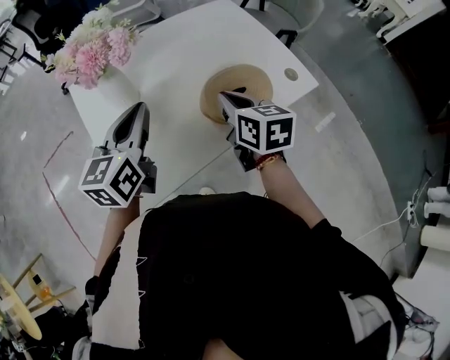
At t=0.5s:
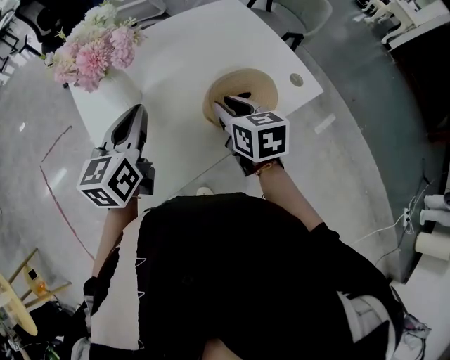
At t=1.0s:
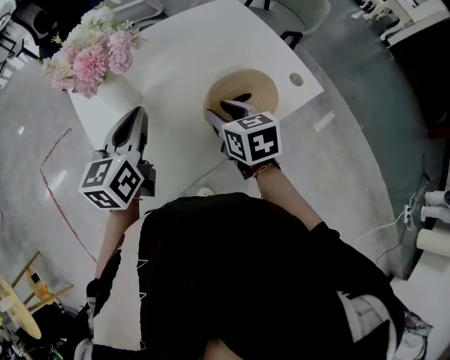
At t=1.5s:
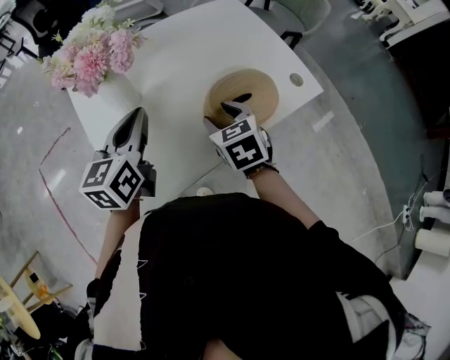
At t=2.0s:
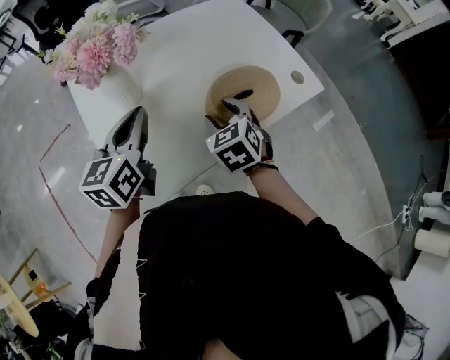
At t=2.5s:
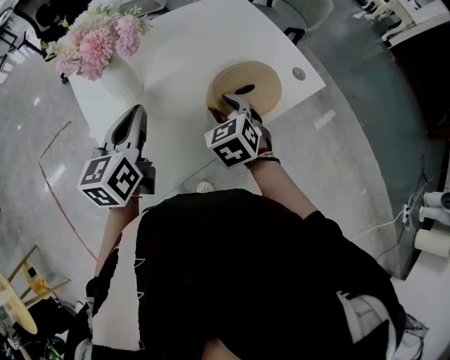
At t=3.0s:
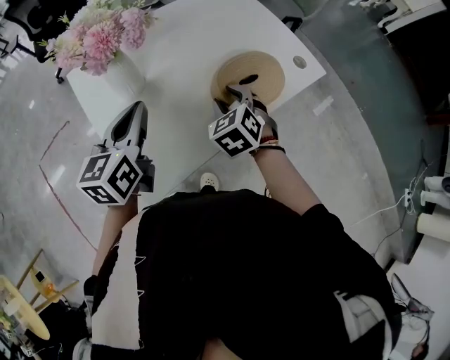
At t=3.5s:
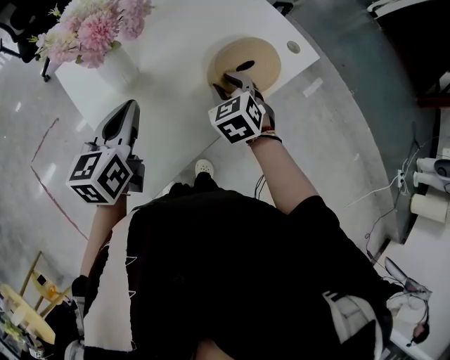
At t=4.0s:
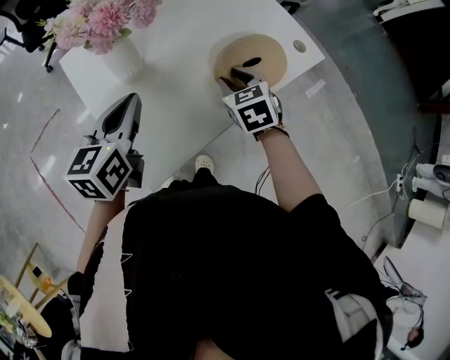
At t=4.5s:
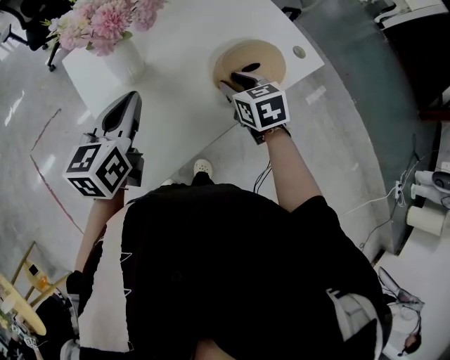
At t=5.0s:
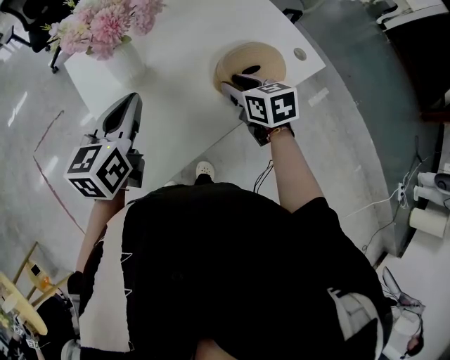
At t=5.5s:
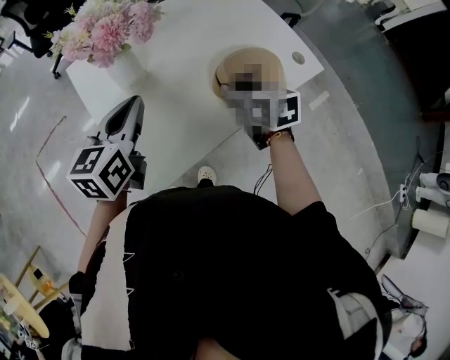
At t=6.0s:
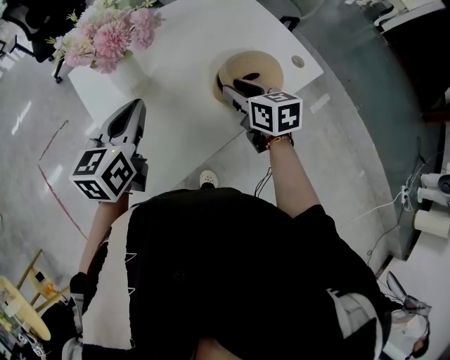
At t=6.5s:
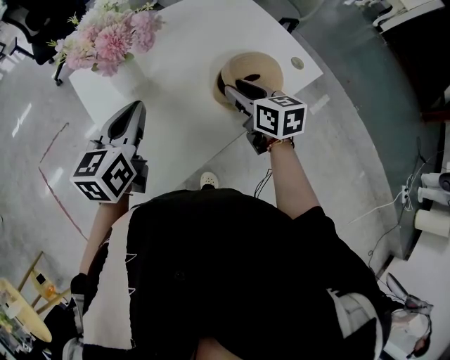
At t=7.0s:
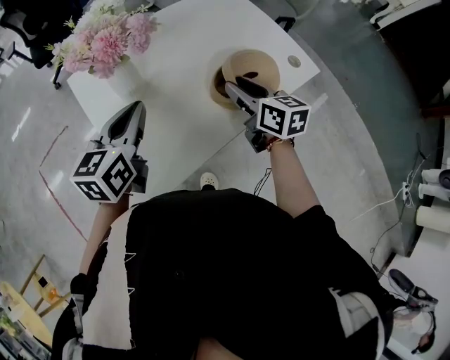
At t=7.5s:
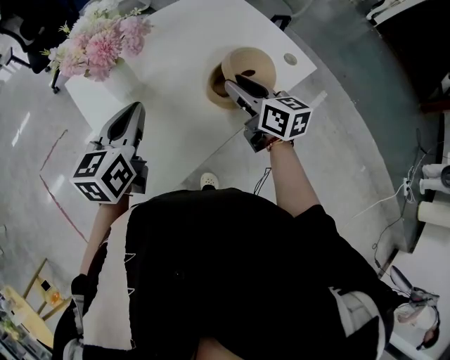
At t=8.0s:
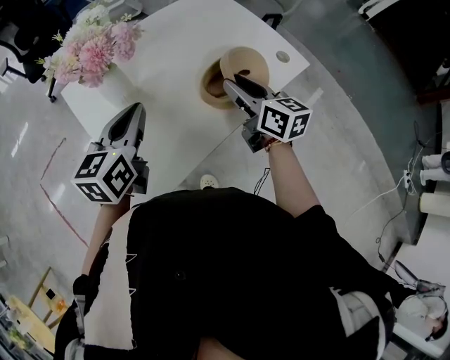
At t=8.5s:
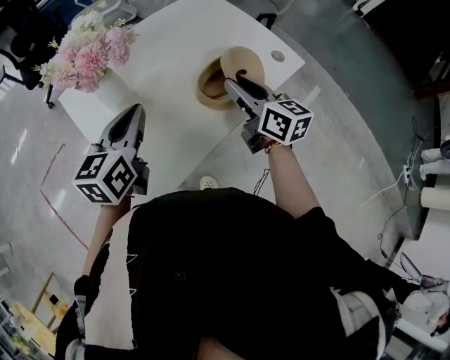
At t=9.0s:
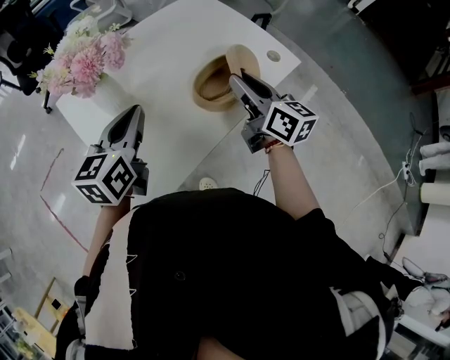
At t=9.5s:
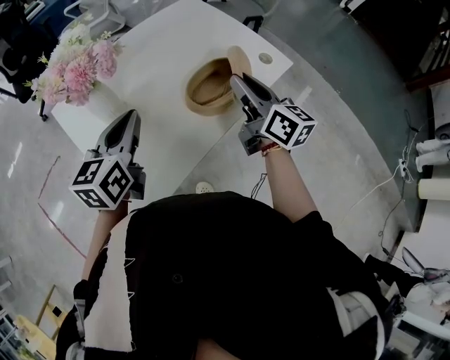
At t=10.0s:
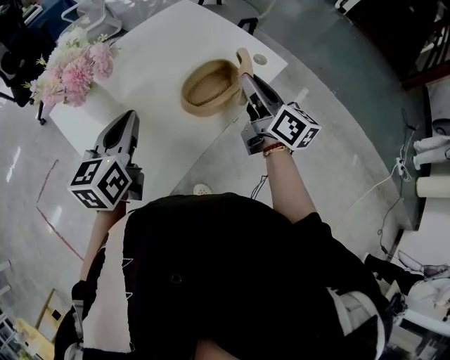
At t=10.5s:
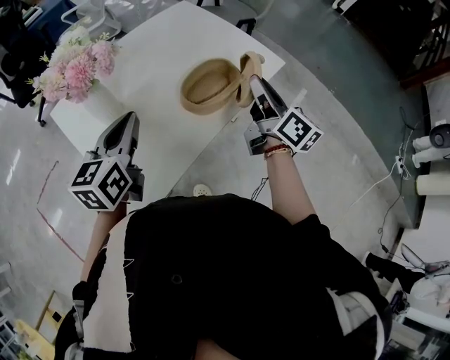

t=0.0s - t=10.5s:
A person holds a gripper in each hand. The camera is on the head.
t=0.0s - t=2.0s: The right gripper goes some 5 cm downward, rotates roughly 40 degrees, and opens up.
t=2.0s - t=4.0s: The left gripper ends up approximately 5 cm from where it was.
t=4.0s - t=6.5s: The right gripper changes place by about 5 cm, and changes its angle by about 30 degrees.
t=6.5s - t=8.5s: The right gripper moves upward, roughly 5 cm.
t=8.5s - t=10.5s: The right gripper goes about 10 cm to the right, and changes its angle by roughly 30 degrees.

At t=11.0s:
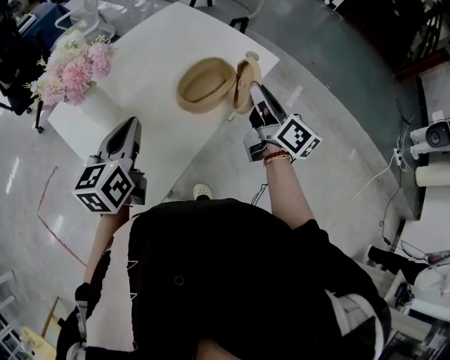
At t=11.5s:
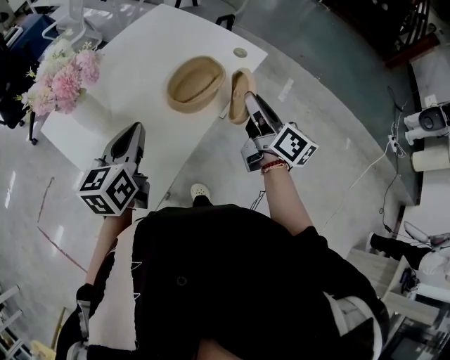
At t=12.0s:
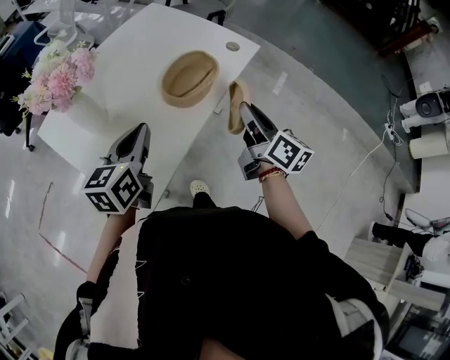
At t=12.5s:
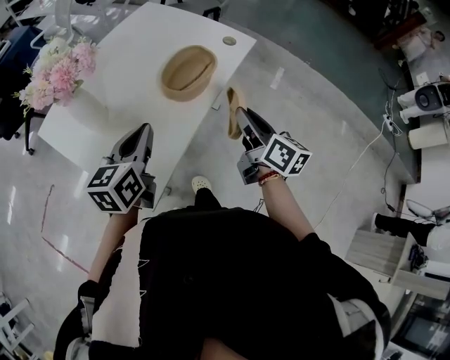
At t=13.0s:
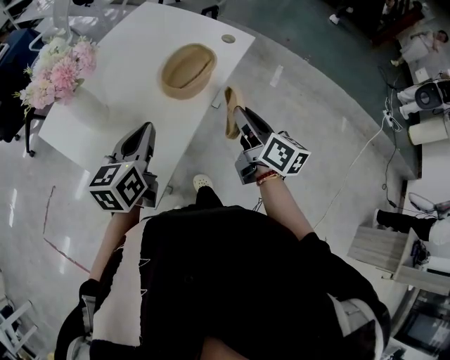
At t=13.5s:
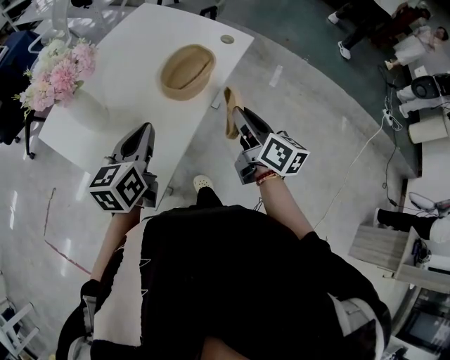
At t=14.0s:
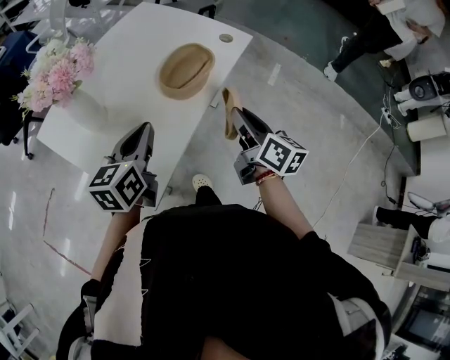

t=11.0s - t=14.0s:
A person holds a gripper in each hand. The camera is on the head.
t=11.0s - t=12.5s: The right gripper is displaced backward and downward by some 10 cm, while the left gripper moves some 5 cm.
t=12.5s - t=14.0s: The grippers stay close to where they were, moving slightly.

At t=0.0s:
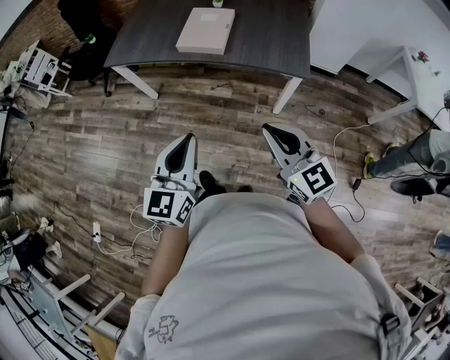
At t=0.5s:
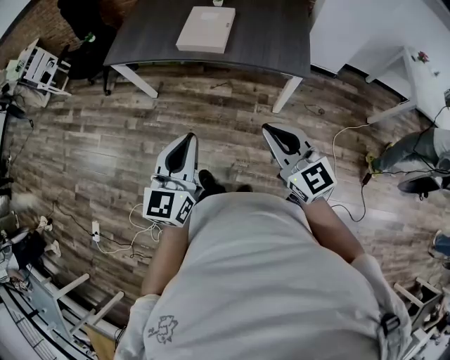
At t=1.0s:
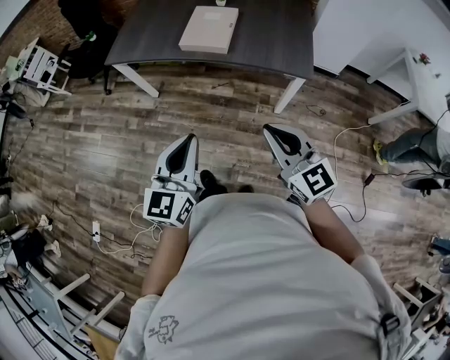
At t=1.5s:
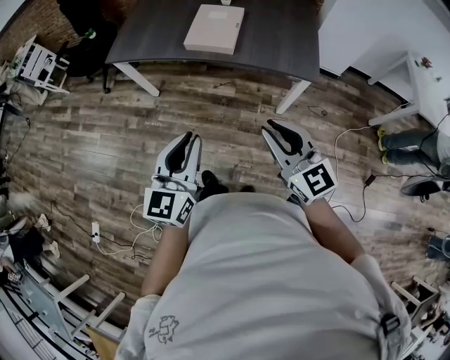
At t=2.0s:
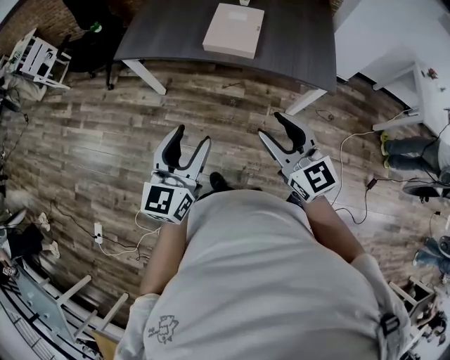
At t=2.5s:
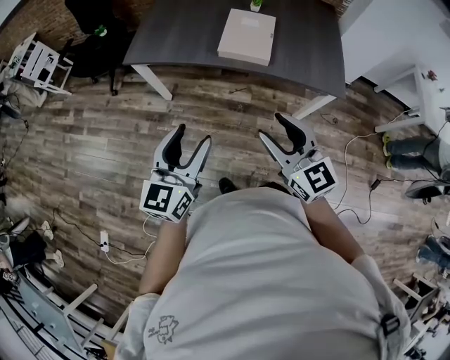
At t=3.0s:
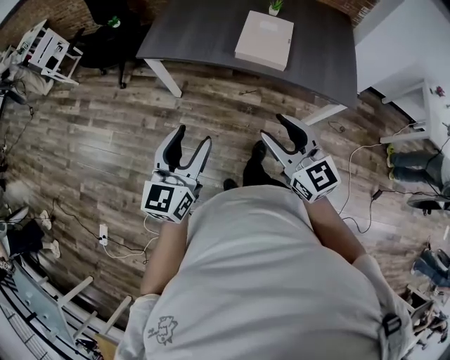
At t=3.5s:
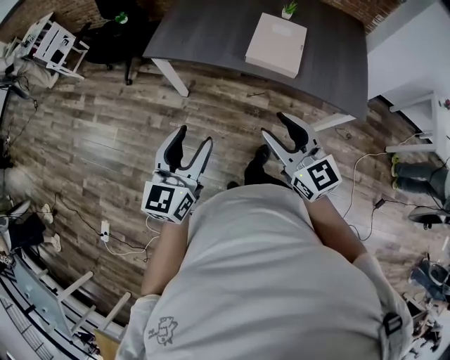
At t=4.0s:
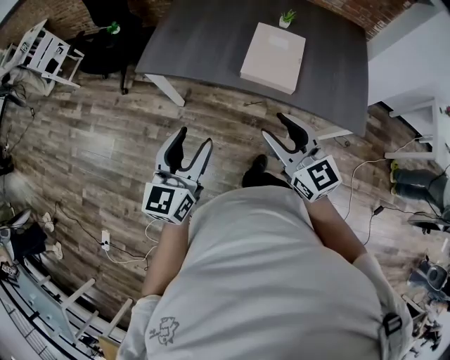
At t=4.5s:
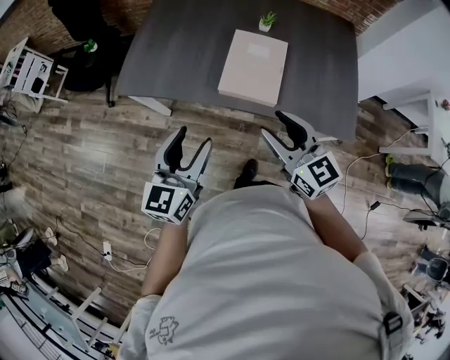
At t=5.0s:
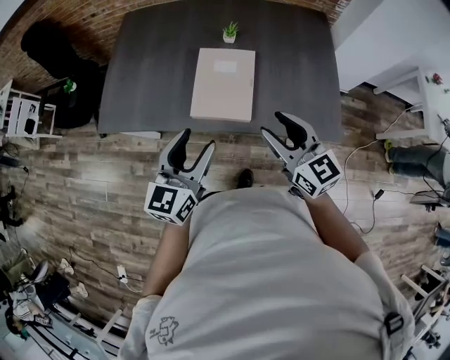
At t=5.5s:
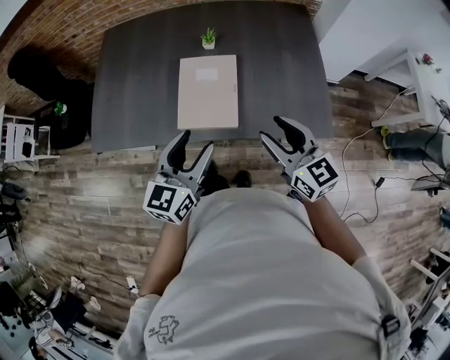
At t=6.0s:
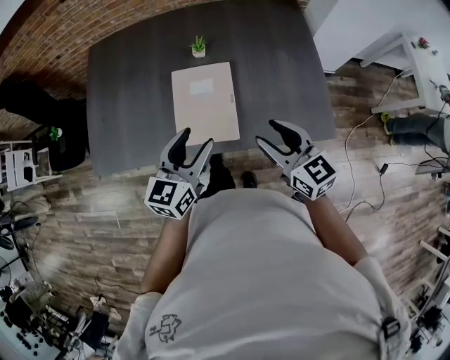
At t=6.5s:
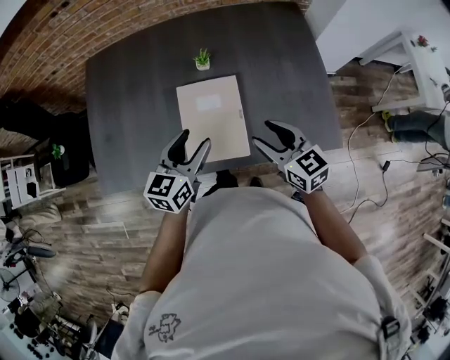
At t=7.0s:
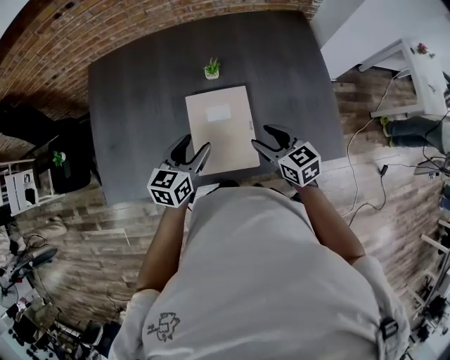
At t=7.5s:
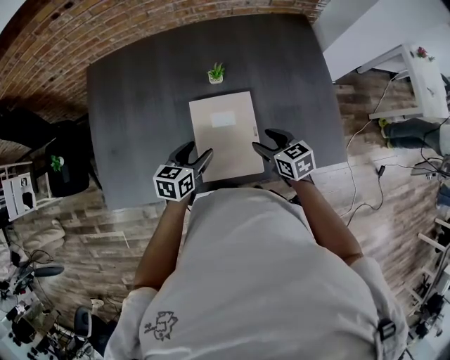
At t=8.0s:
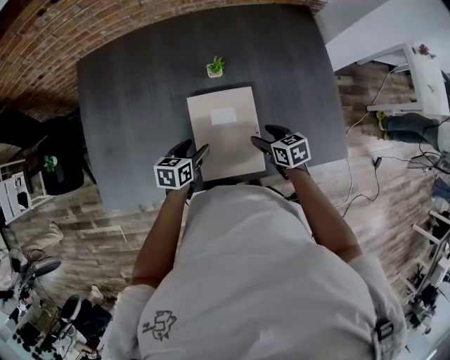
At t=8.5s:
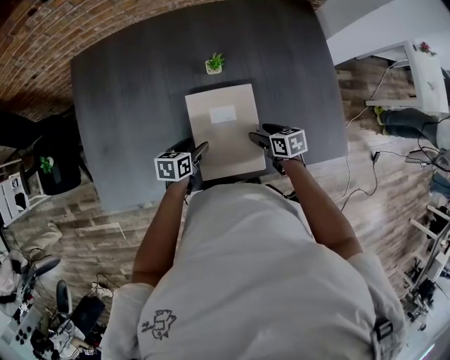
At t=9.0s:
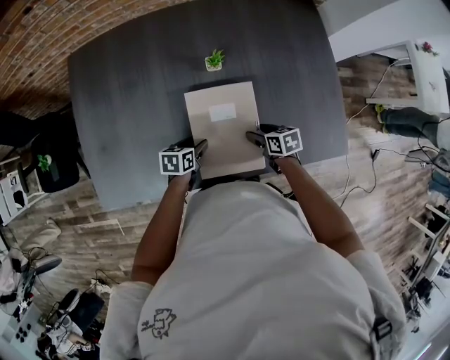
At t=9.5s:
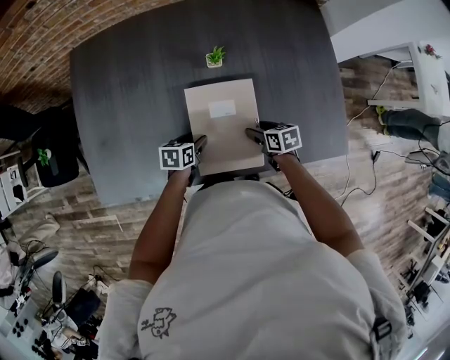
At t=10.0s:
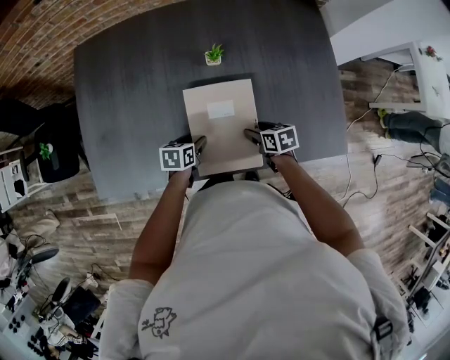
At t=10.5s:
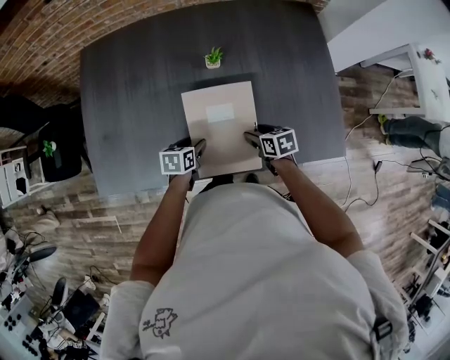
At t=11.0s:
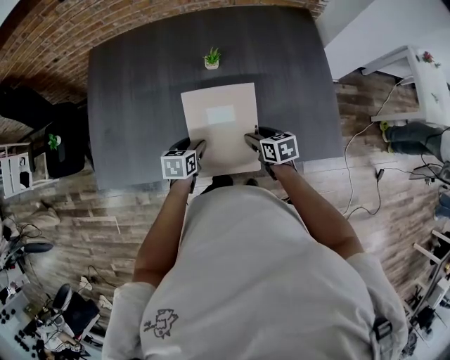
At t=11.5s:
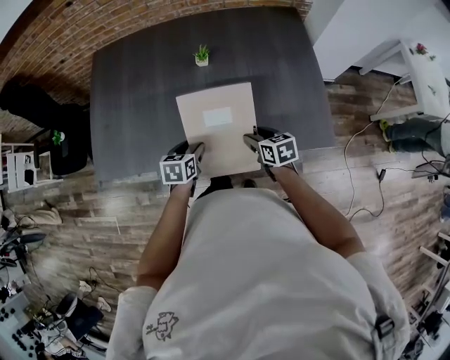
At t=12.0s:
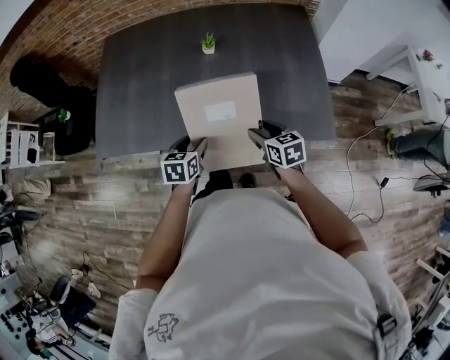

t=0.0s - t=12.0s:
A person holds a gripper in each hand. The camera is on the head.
t=0.0s - t=2.0s: The grippers both shift to the left and forward by some 15 cm. The right gripper opens its fingers, while the left gripper opens up.
t=2.0s - t=4.0s: Both grippers move forward and to the left, some 20 cm.
t=4.0s - t=6.0s: The right gripper goes about 30 cm to the right and forward, and rotates about 20 degrees. Meanwhile the left gripper heads forward and to the right, covering approximately 35 cm, and changes its angle by about 30 degrees.
t=6.0s - t=8.0s: The left gripper moves downward, forward and to the left, approximately 30 cm, and rotates about 40 degrees. Meanwhile the right gripper goes approximately 25 cm downward and forward, and points its fingers about 30 degrees further downward.
t=8.0s - t=10.0s: Both grippers travel together downward, about 5 cm.
t=10.0s - t=12.0s: The left gripper is displaced backward and upward by approximately 20 cm, and swivels roughly 20 degrees; the right gripper travels upward, backward and to the right by some 20 cm, and rotates some 20 degrees.

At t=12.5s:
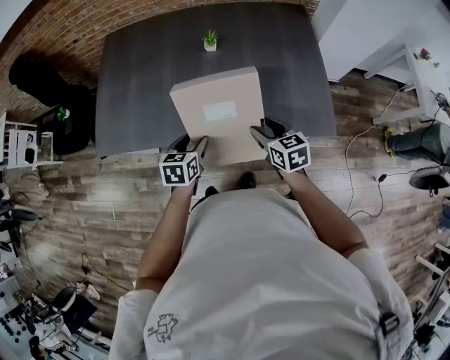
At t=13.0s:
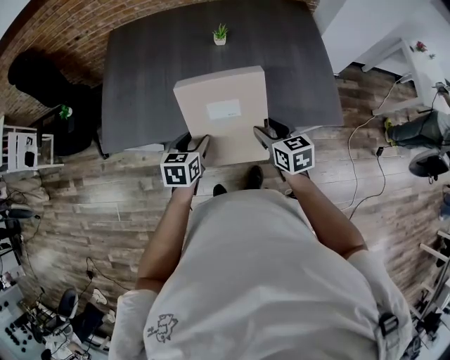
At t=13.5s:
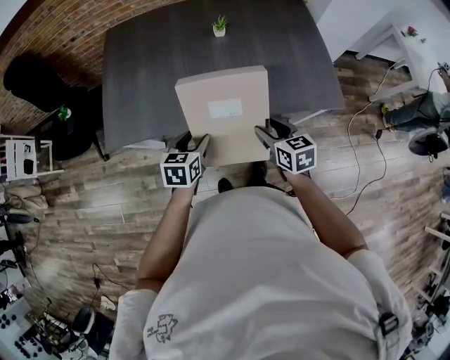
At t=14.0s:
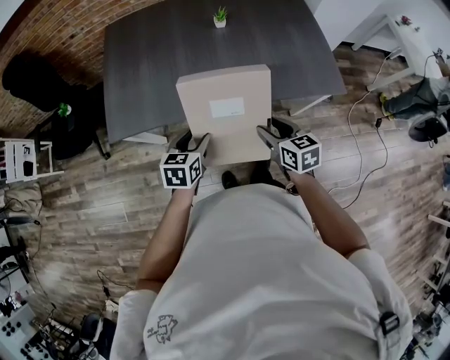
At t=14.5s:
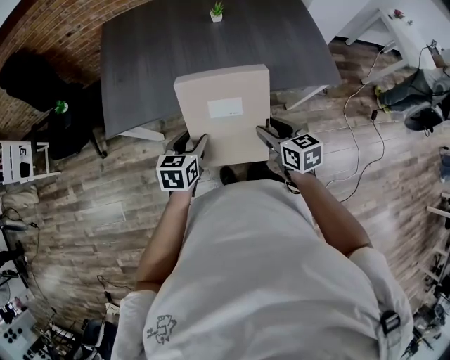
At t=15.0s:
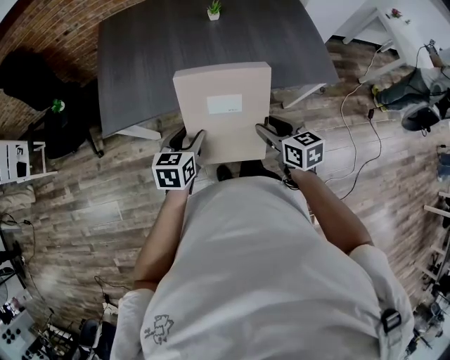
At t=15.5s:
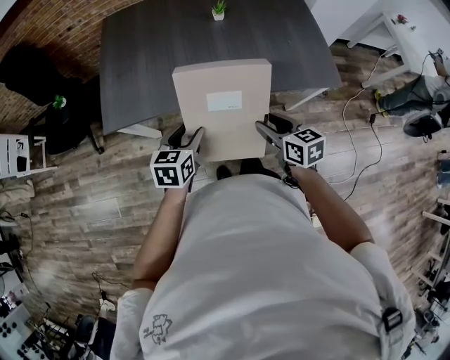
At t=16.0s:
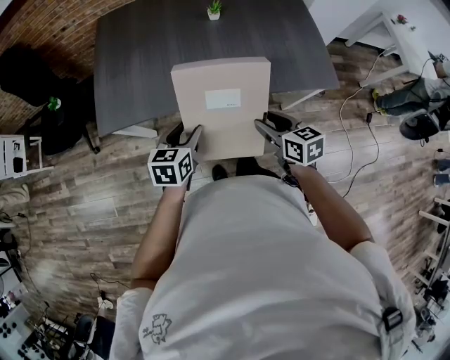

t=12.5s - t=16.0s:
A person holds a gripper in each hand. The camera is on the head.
t=12.5s - t=14.5s: Both grippers travel together backward and to the left, approximately 20 cm.
t=14.5s - t=16.0s: The grippers make only small movements.
